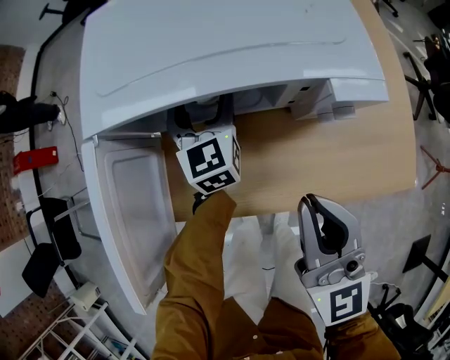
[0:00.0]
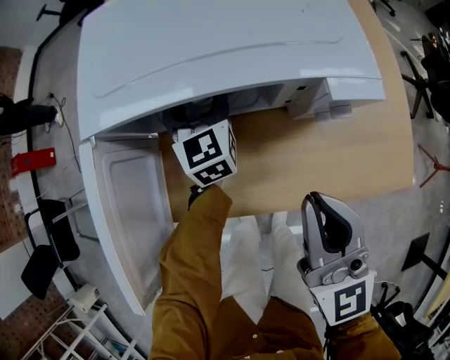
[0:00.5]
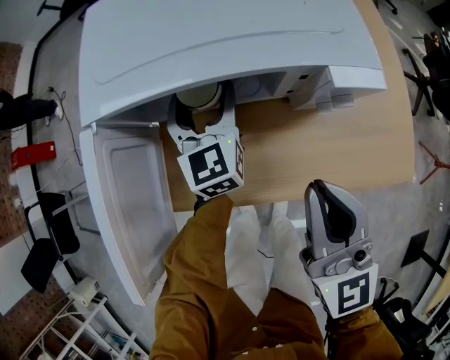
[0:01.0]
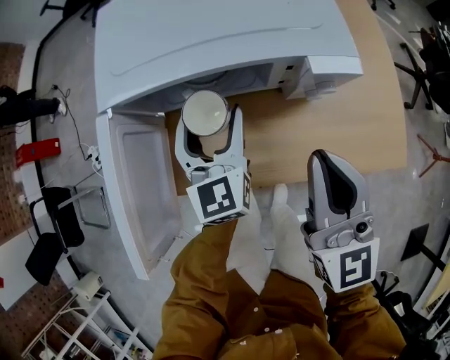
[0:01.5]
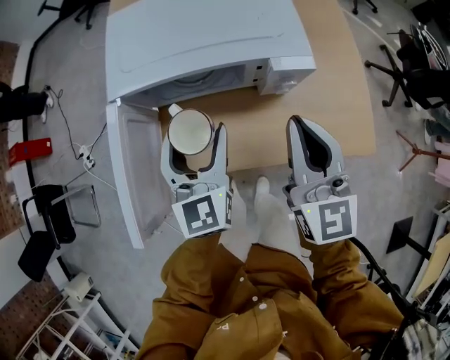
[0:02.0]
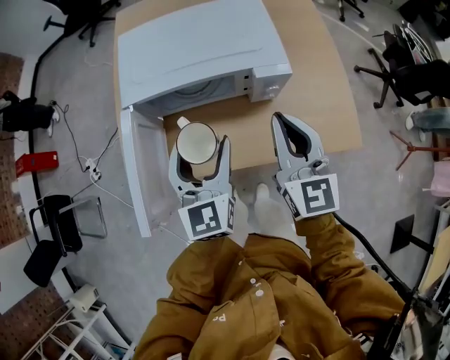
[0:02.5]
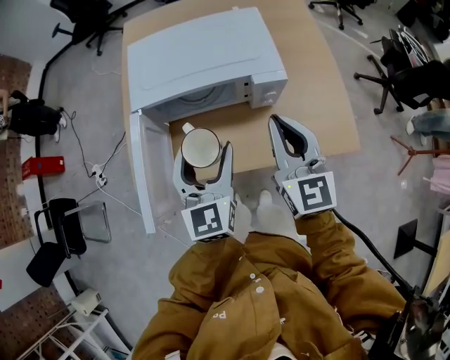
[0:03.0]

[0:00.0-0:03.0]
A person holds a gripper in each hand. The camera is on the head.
0:00.0 to 0:01.5: The left gripper goes roughly 15 cm backward and upward.
0:01.5 to 0:03.0: The left gripper goes some 20 cm upward and backward. The right gripper travels upward by approximately 10 cm.

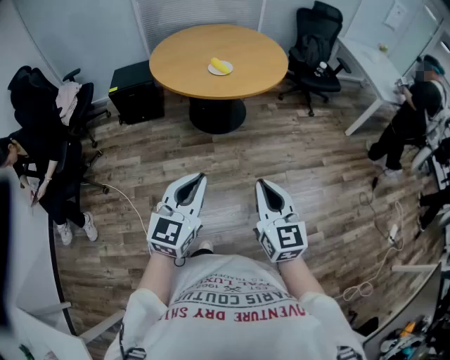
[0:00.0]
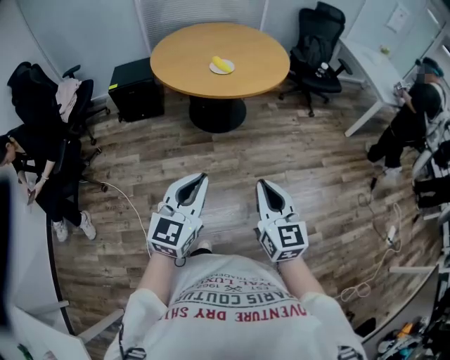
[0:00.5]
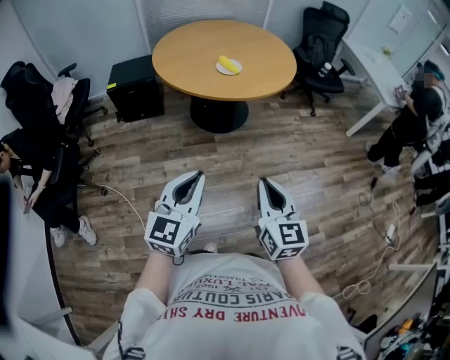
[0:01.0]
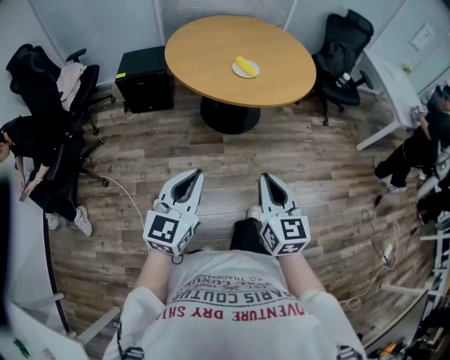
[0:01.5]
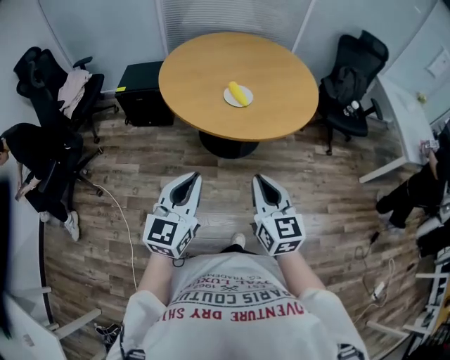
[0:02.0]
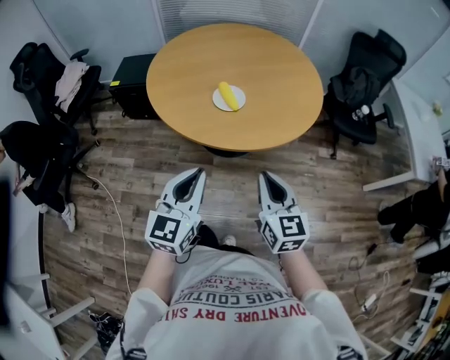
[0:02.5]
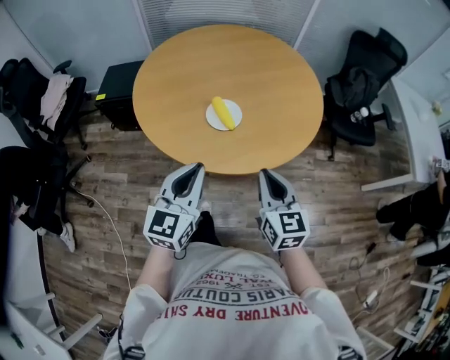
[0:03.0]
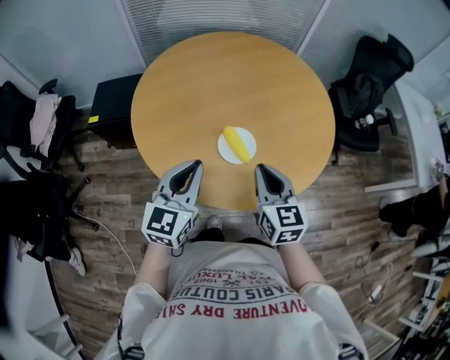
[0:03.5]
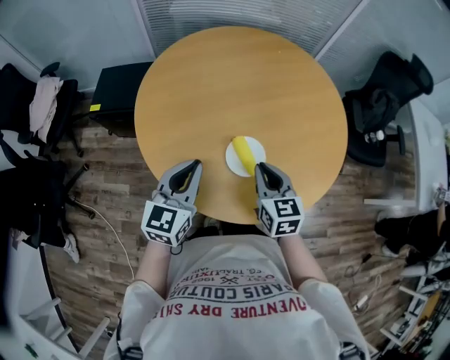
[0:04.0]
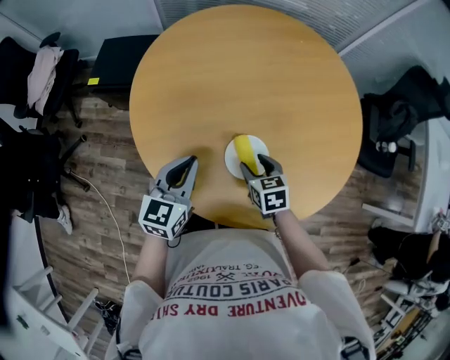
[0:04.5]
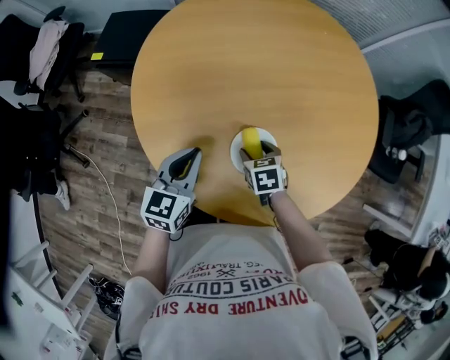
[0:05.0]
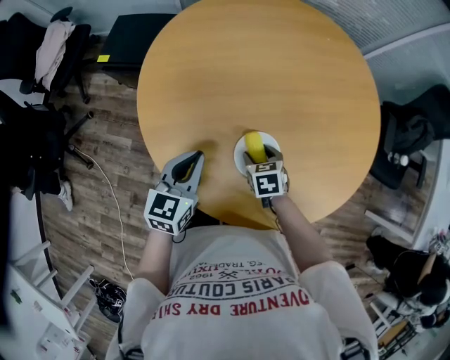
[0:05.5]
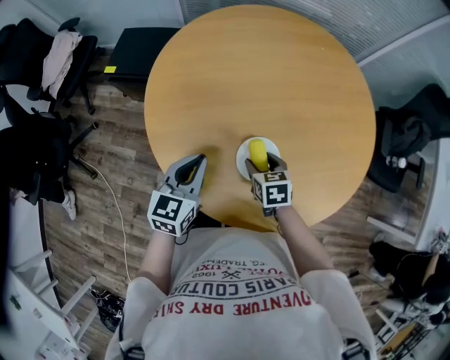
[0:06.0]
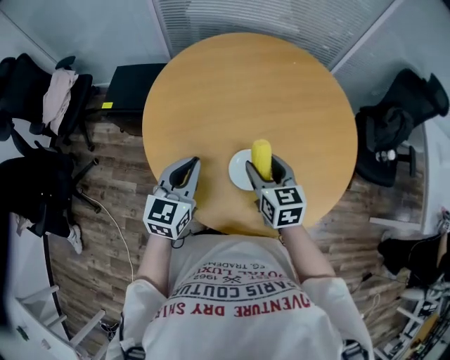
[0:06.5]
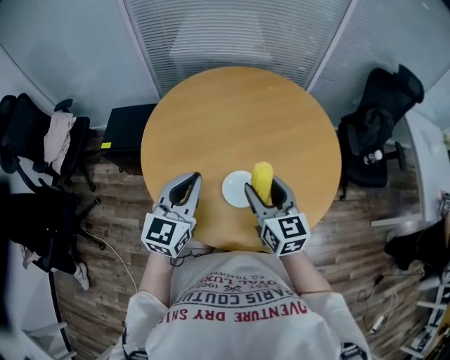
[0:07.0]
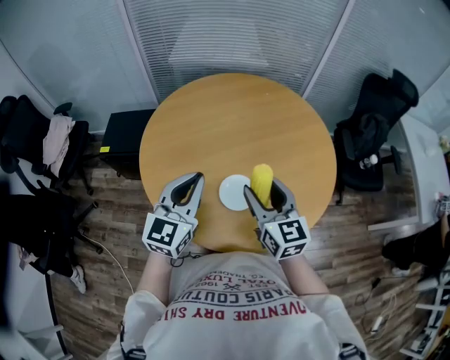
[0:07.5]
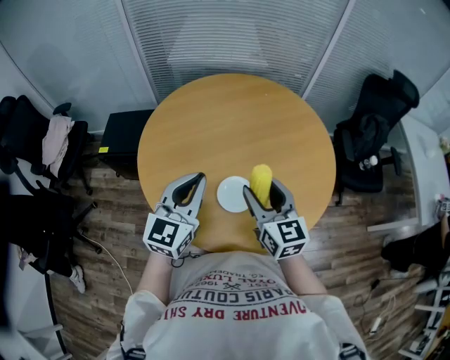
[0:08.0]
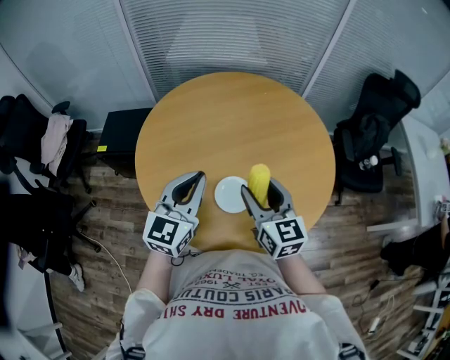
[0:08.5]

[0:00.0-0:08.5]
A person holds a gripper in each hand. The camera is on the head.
0:00.0 to 0:02.0: The grippers both shift forward by approximately 30 cm.
0:02.0 to 0:04.0: The two grippers travel together, forward, approximately 40 cm.
0:04.0 to 0:06.5: The left gripper reaches about 10 cm downward, then returns; the right gripper shifts some 5 cm forward, reaches about 20 cm downward, then returns, and opens.
0:06.5 to 0:08.5: The right gripper shifts about 10 cm upward. The left gripper shifts roughly 15 cm upward and to the right.

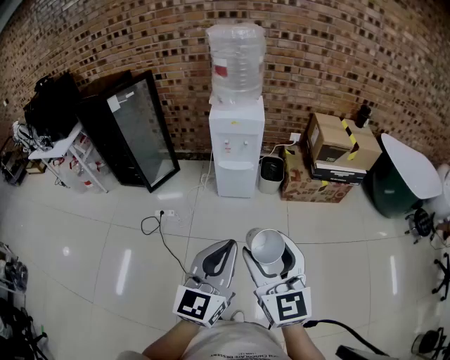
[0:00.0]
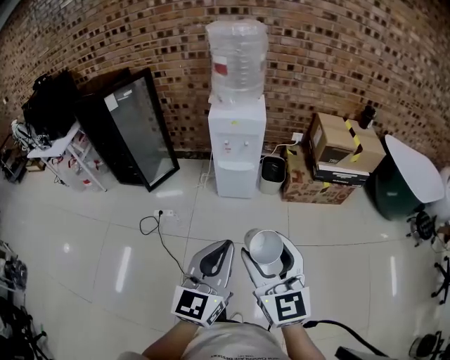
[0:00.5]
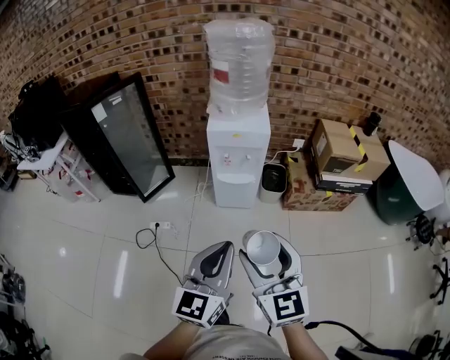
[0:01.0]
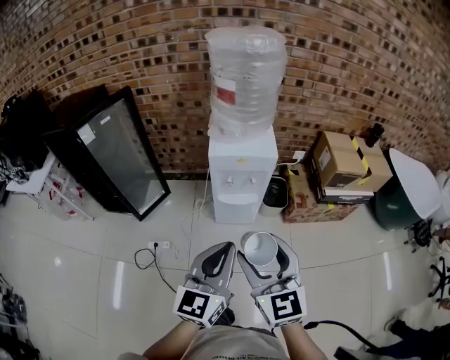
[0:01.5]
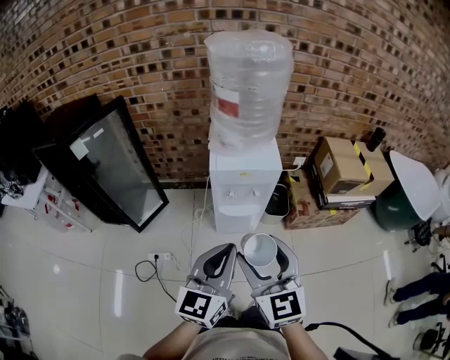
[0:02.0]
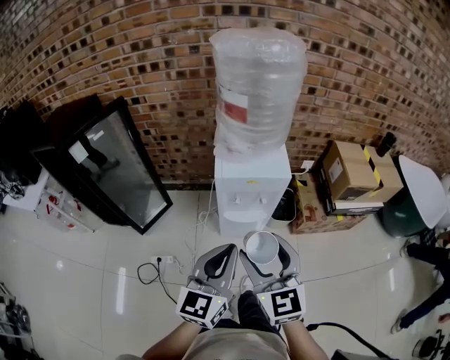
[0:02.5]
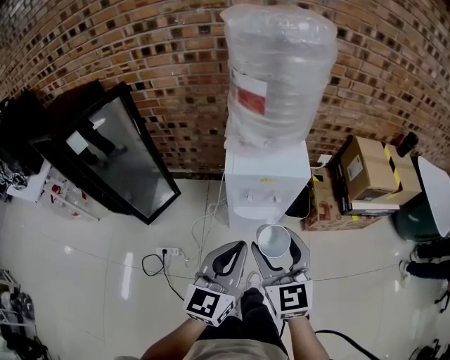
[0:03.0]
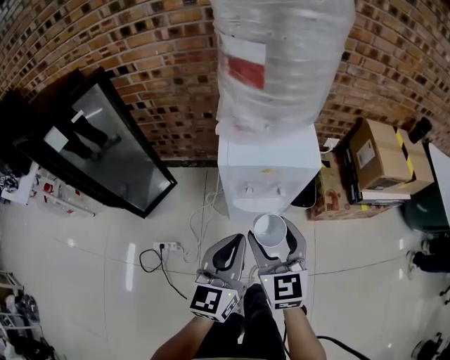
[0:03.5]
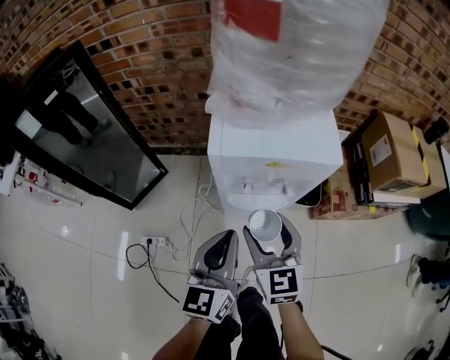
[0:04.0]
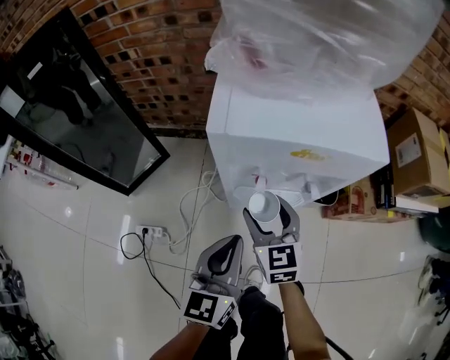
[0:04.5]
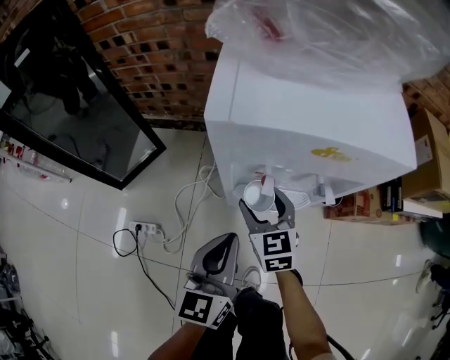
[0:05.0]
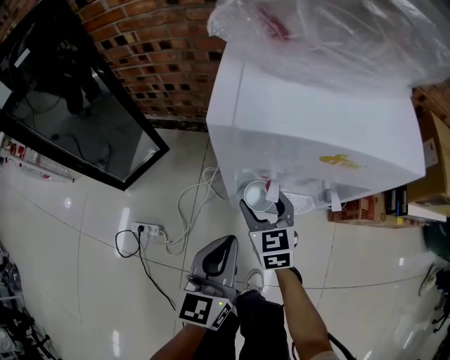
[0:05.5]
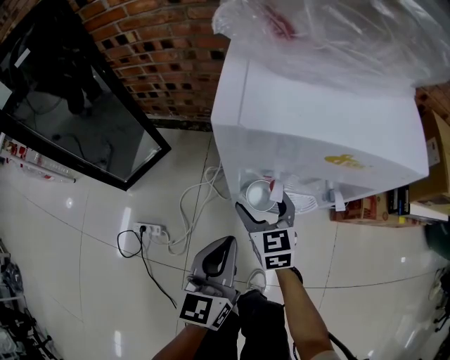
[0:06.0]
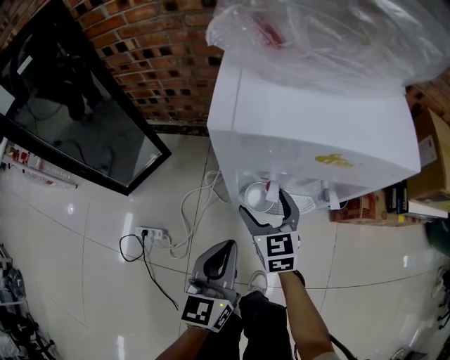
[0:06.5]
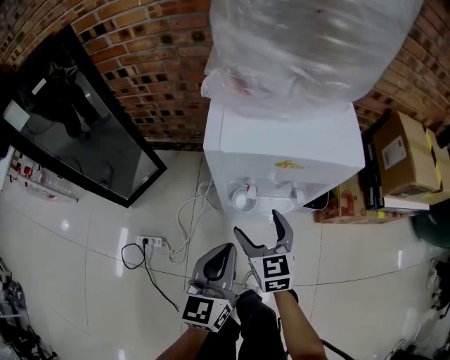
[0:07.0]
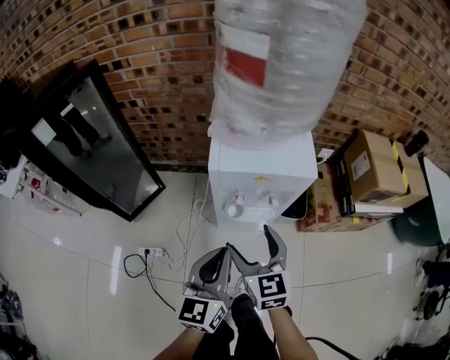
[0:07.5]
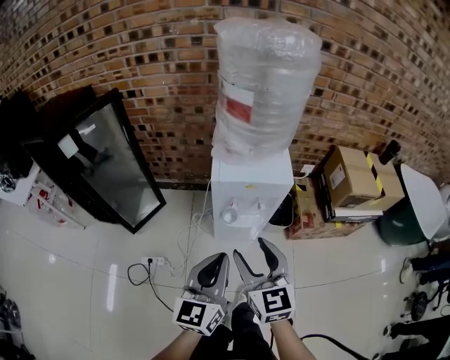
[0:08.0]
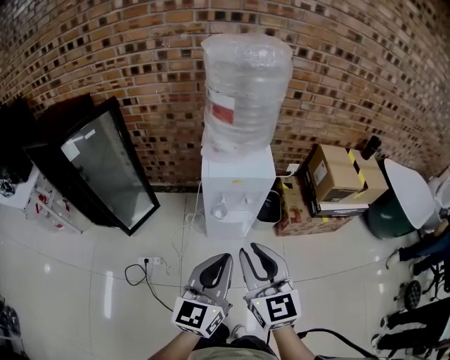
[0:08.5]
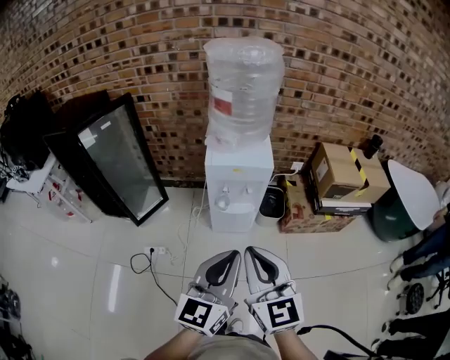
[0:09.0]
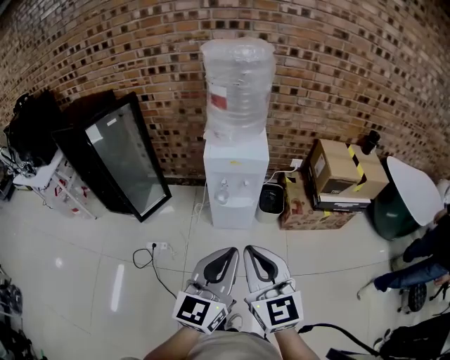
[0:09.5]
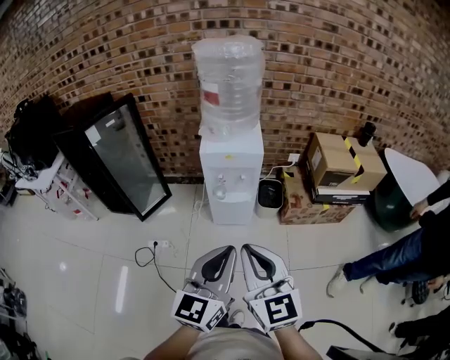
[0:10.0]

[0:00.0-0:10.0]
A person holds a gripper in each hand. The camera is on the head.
0:00.0 to 0:02.0: Both grippers move forward, about 35 cm.
0:02.0 to 0:04.0: Both grippers move downward and forward, approximately 35 cm.
0:04.0 to 0:06.0: The left gripper goes about 15 cm downward, while the right gripper heads downward and forward, covering approximately 25 cm.
0:06.0 to 0:08.0: Both grippers move upward and backward, about 40 cm.
0:08.0 to 0:10.0: The left gripper moves backward, to the right and upward, about 25 cm, while the right gripper is displaced backward and upward by some 25 cm, and closes up.

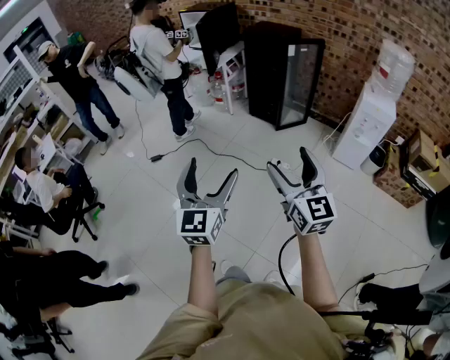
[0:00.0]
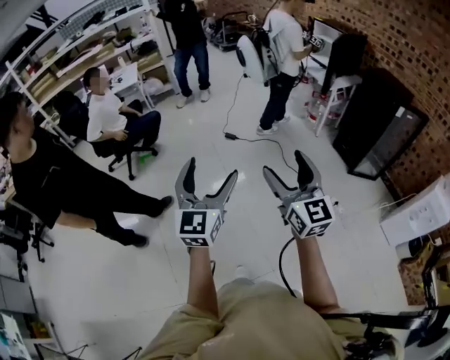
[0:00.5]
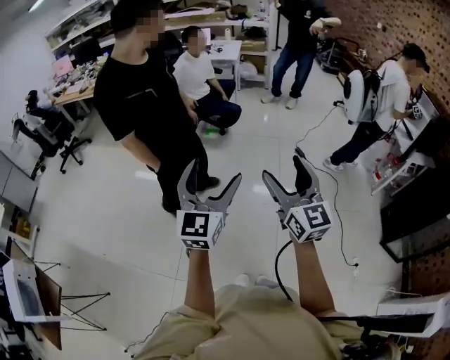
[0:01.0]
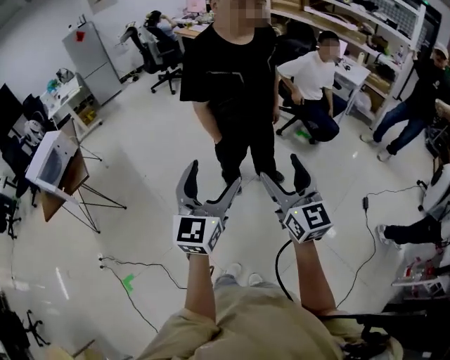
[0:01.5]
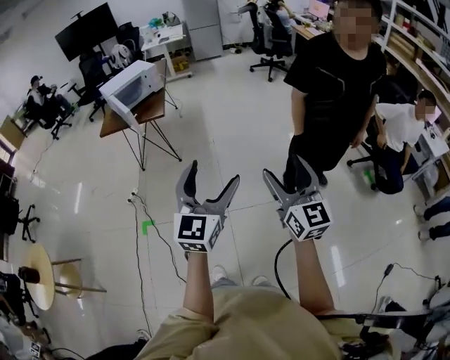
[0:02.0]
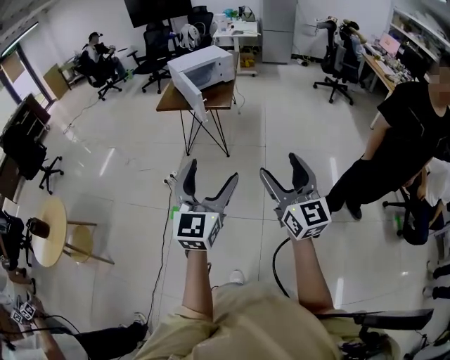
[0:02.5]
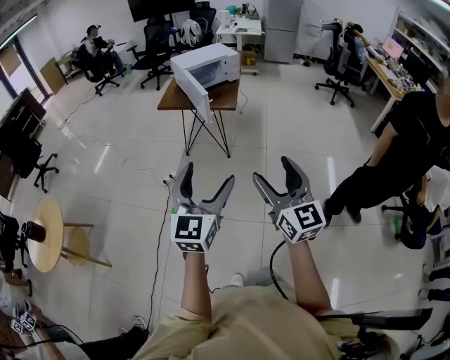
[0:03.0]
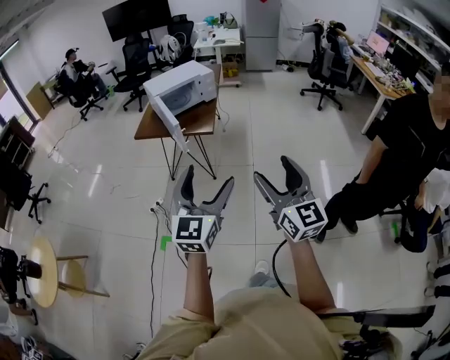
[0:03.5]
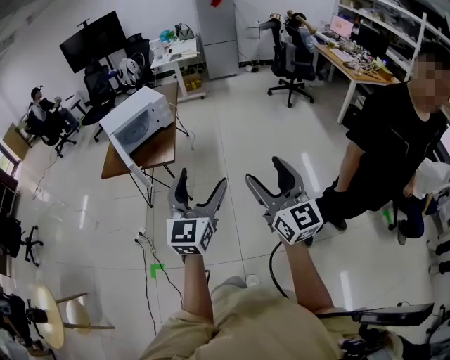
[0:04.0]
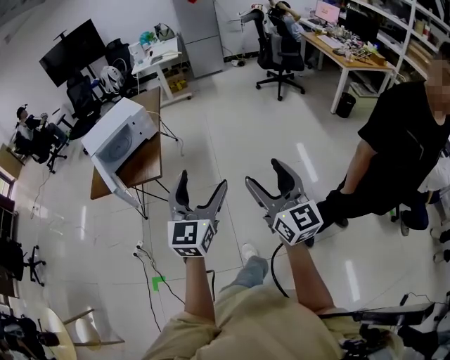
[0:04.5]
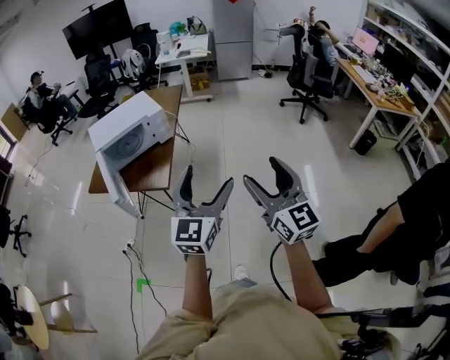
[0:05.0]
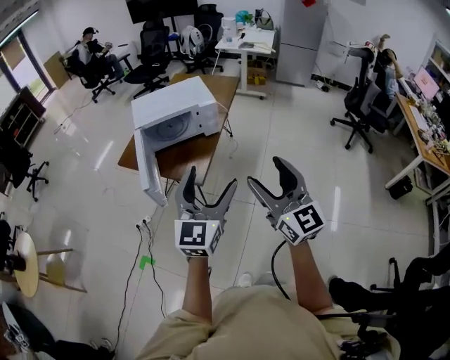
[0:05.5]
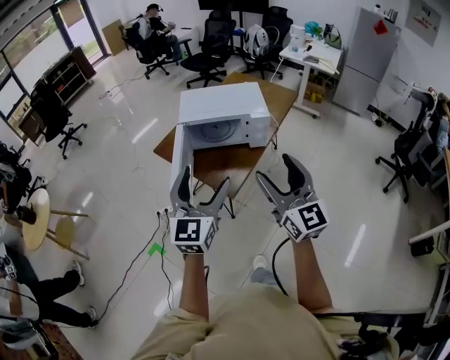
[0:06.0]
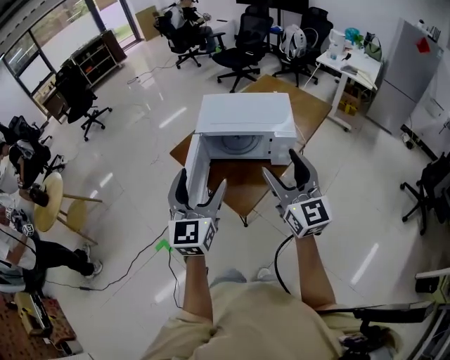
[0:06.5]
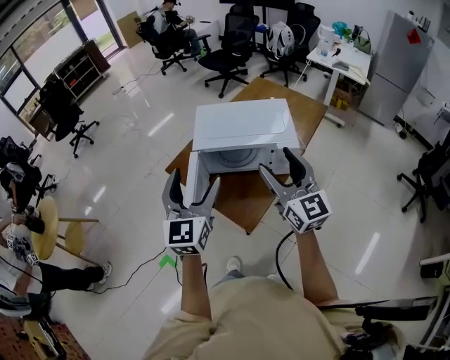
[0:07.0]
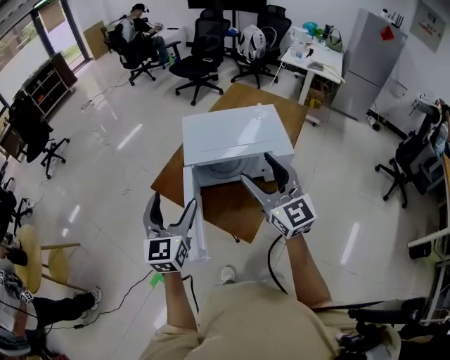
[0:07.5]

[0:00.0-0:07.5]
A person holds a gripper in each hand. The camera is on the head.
0:00.0 to 0:02.0: The left gripper shifts by approximately 30 cm, and changes its angle by about 120 degrees, while the right gripper ends up approximately 60 cm from where it was, and rotates some 130 degrees.
0:02.0 to 0:04.0: The grippers both shift forward by approximately 35 cm.
0:04.0 to 0:05.5: The left gripper moves some 35 cm, and changes its angle by some 20 degrees. Meanwhile the right gripper changes place by some 40 cm, and changes its angle by roughly 30 degrees.
0:05.5 to 0:07.5: Both grippers are carried forward and to the left, some 50 cm. The left gripper rotates roughly 20 degrees.
